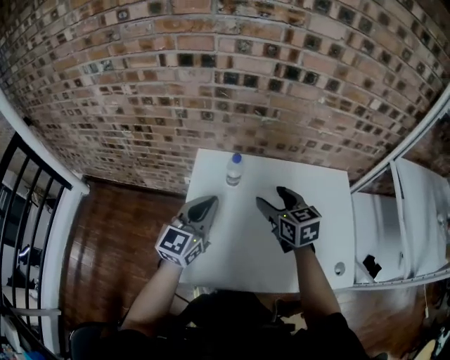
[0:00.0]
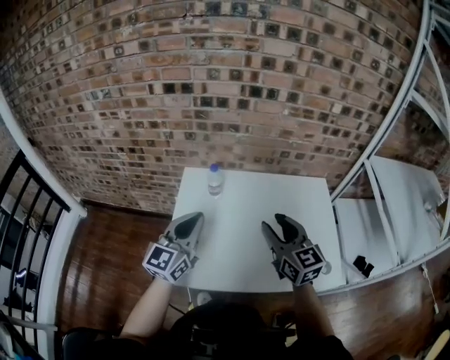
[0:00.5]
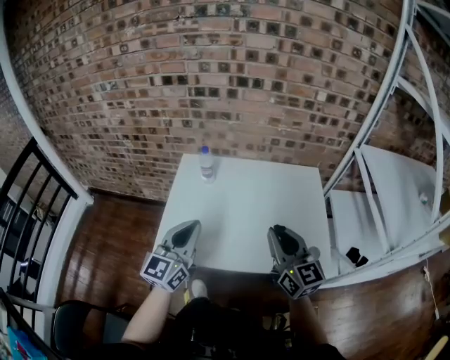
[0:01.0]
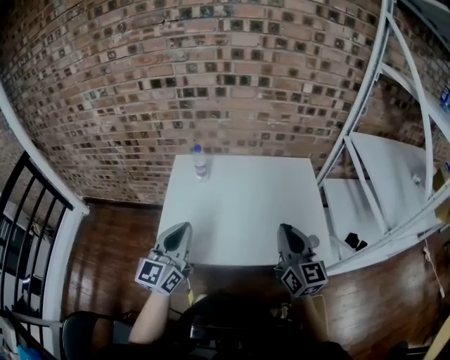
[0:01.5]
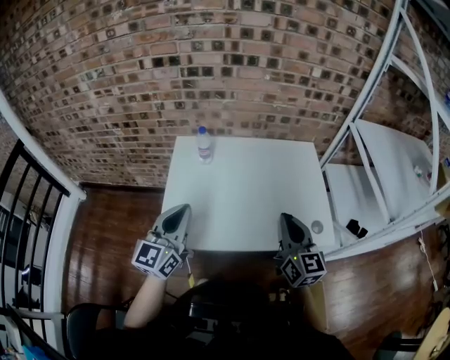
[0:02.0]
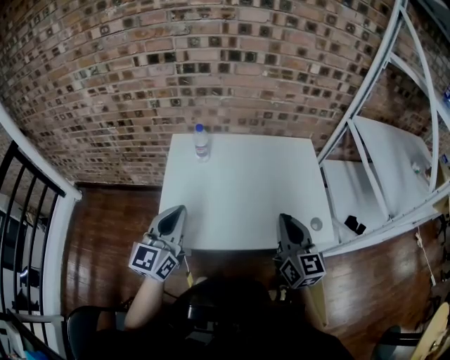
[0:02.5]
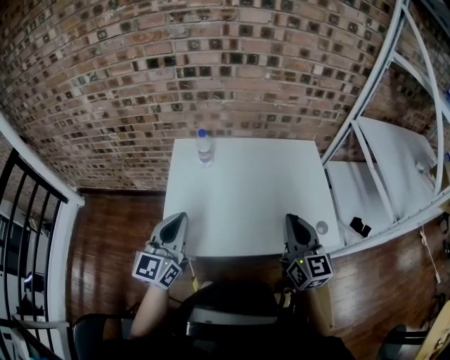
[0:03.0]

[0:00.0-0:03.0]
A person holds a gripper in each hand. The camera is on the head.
0:00.0 to 0:01.5: The left gripper goes about 25 cm backward. The right gripper is displaced backward and to the right by about 35 cm, turns by about 30 degrees, and closes its fingers.
0:01.5 to 0:03.0: The left gripper moves to the left, roughly 5 cm.

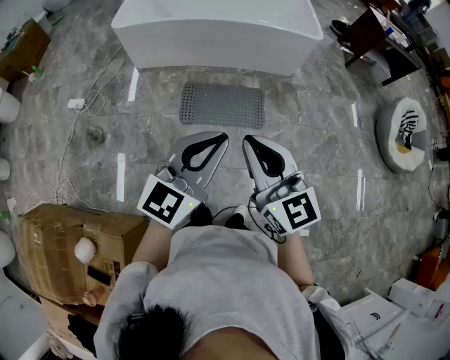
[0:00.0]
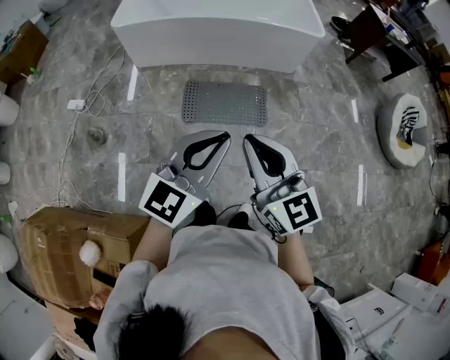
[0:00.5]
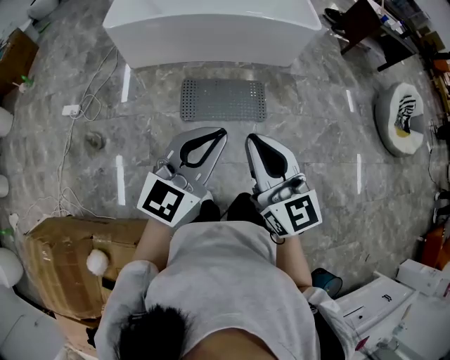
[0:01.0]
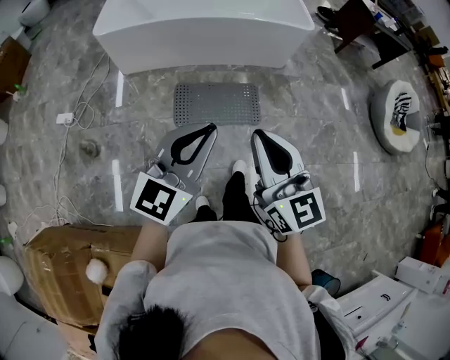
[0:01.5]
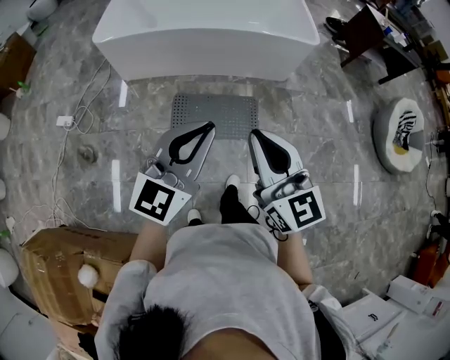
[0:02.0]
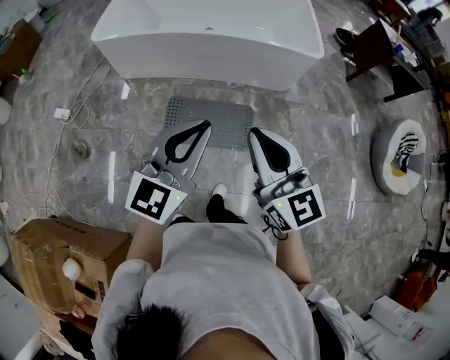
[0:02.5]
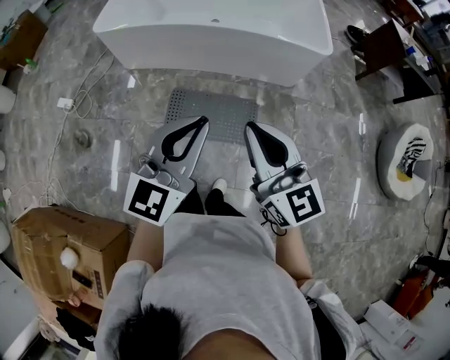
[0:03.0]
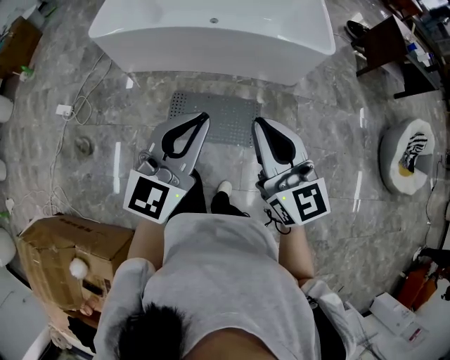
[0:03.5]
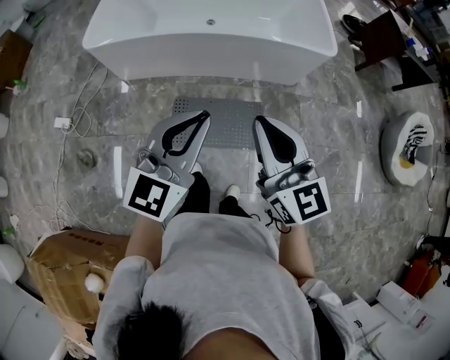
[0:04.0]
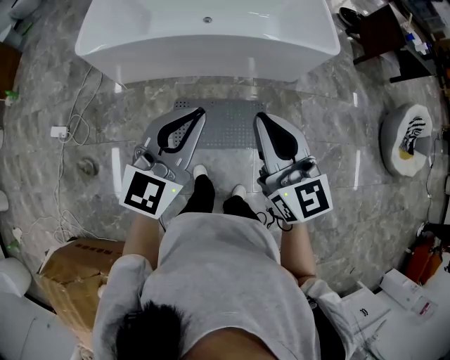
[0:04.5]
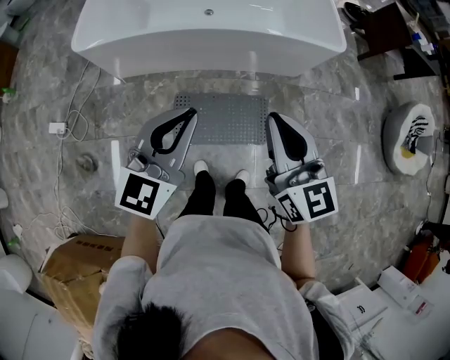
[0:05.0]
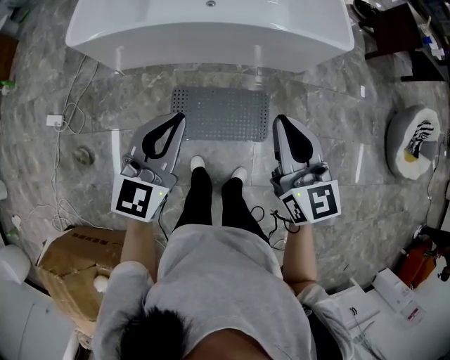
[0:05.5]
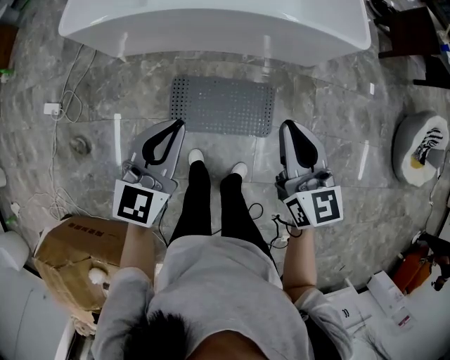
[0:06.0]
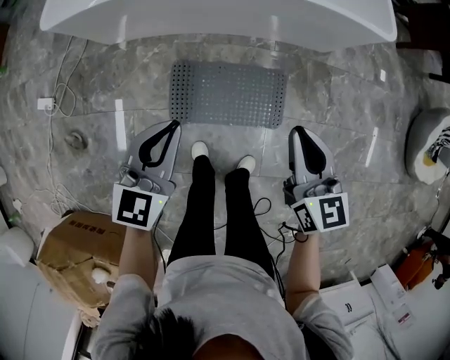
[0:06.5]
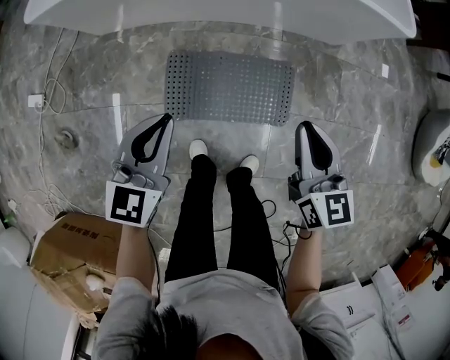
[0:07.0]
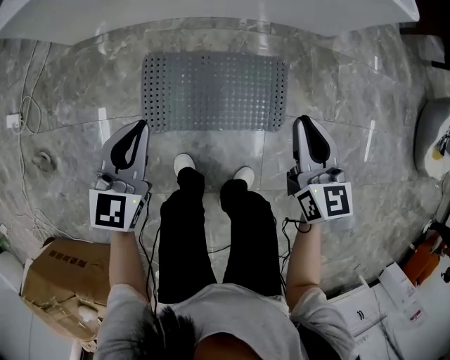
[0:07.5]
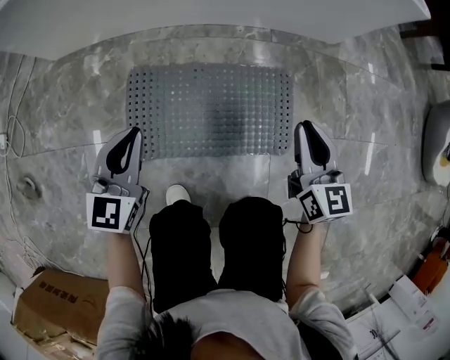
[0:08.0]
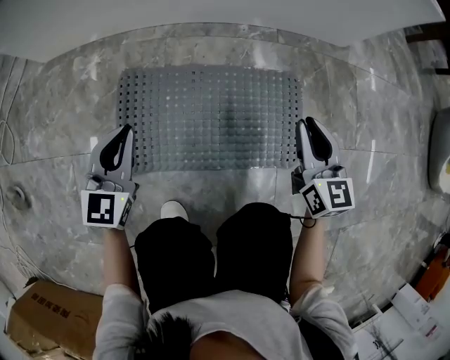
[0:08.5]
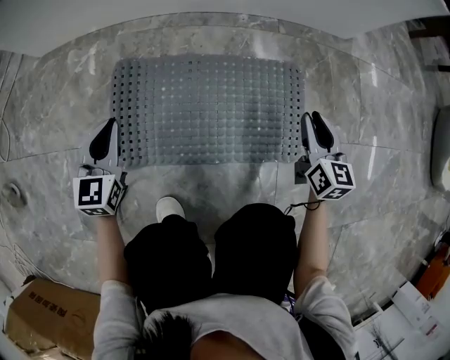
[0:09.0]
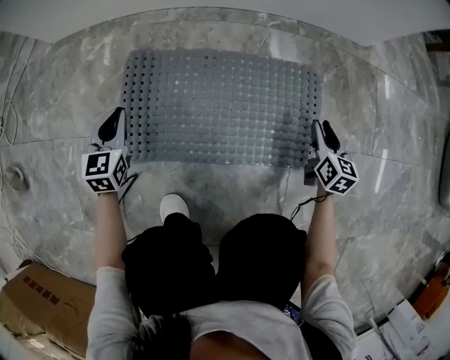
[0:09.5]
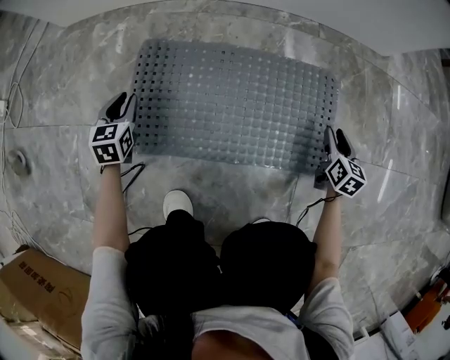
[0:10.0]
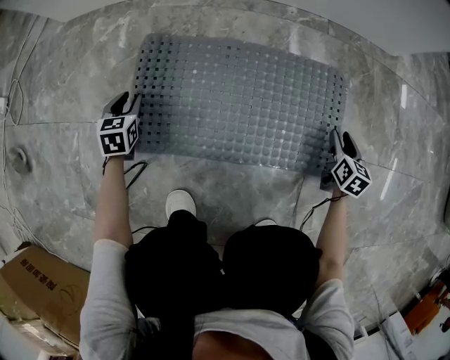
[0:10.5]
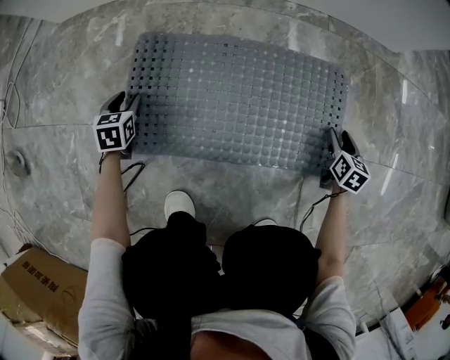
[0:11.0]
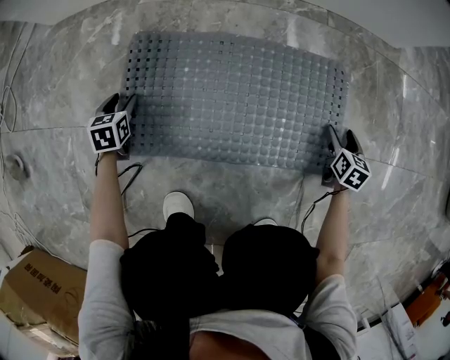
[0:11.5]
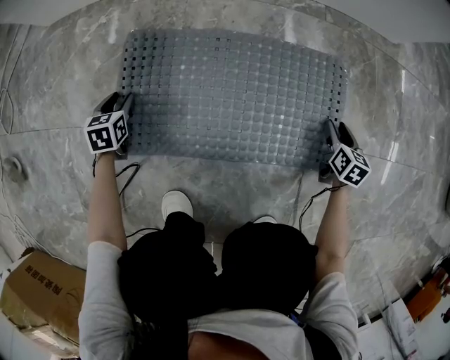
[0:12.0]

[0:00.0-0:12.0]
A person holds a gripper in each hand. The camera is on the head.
0:00.0 to 0:02.0: The two grippers go approximately 15 cm forward.
0:02.0 to 0:04.0: Both grippers travel together forward, approximately 20 cm.
0:04.0 to 0:06.0: The two grippers go some 20 cm downward and forward.
0:06.0 to 0:08.0: Both grippers travel together downward, about 50 cm.
0:08.0 to 0:10.0: The left gripper heads downward and to the left, covering roughly 35 cm, changes its angle by roughly 30 degrees, and opens its fingers. Meanwhile the right gripper shifts approximately 35 cm downward, changes its angle by about 20 degrees, and opens up.
0:10.0 to 0:12.0: The two grippers go about 10 cm downward.

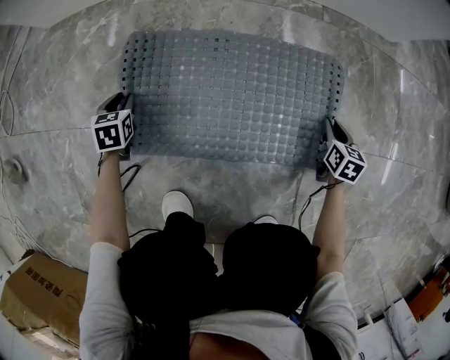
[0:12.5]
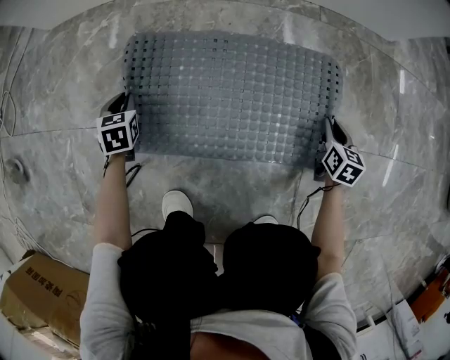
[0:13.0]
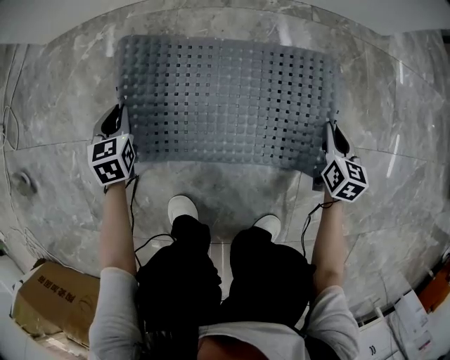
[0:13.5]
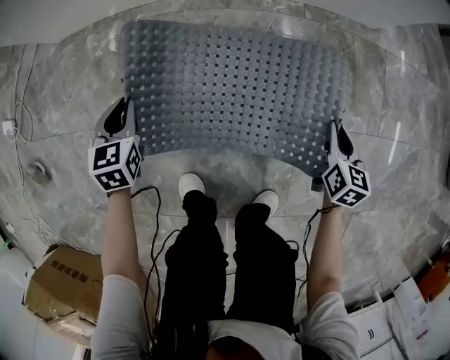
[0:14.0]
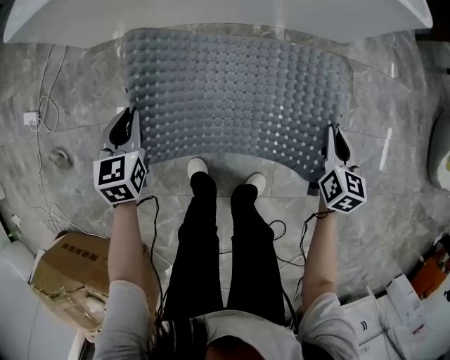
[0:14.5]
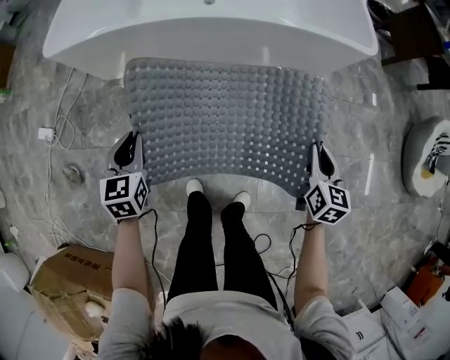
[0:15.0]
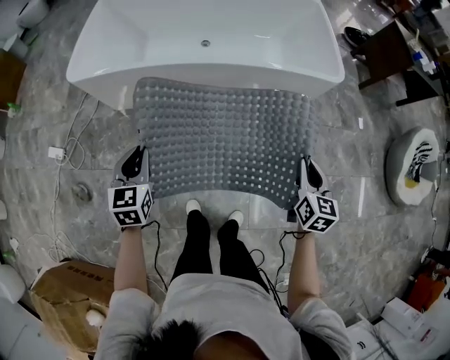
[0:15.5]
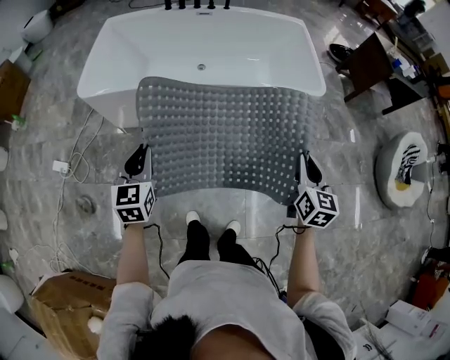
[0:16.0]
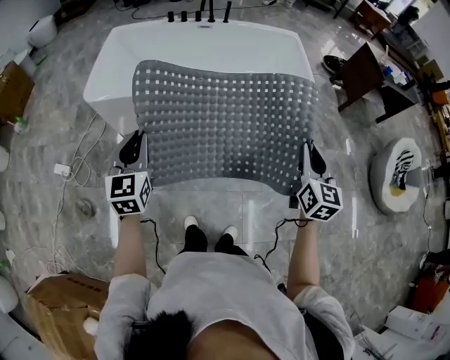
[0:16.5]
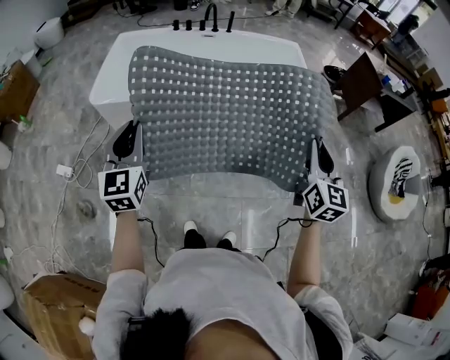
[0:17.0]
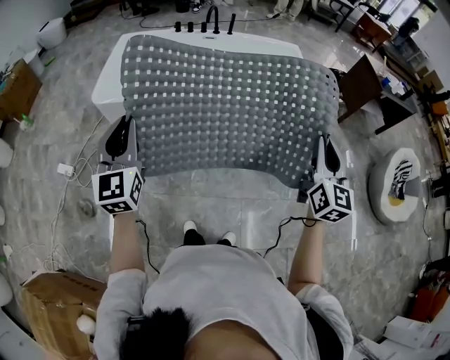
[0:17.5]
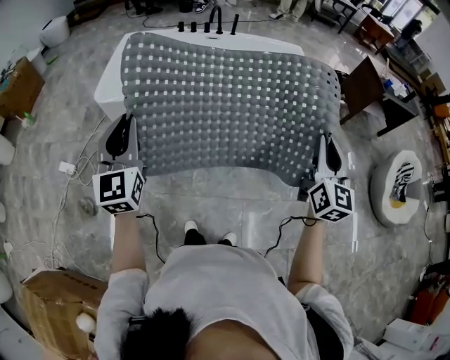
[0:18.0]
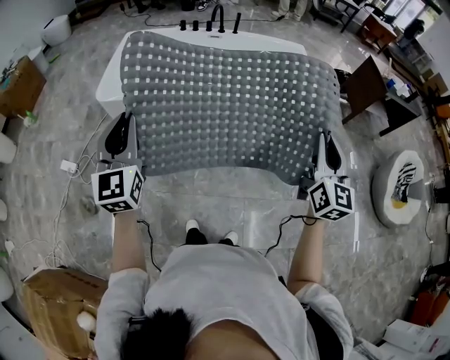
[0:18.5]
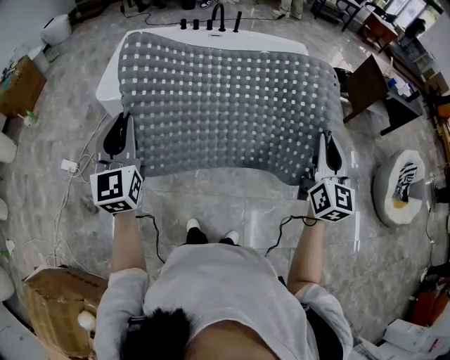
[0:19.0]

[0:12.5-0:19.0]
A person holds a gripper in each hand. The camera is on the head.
0:12.5 to 0:14.5: The grippers both shift upward by some 50 cm.
0:14.5 to 0:17.0: The two grippers go some 60 cm upward. The left gripper tilts its fingers some 40 degrees upward, while the right gripper tips its fingers upward by some 30 degrees.
0:17.0 to 0:19.0: The left gripper changes place by some 5 cm.

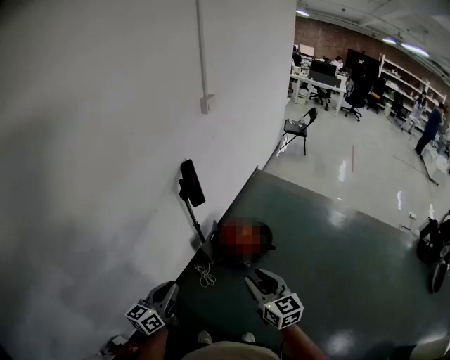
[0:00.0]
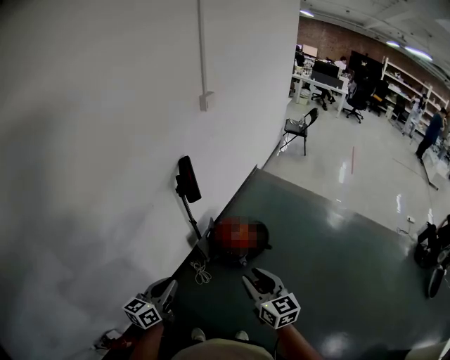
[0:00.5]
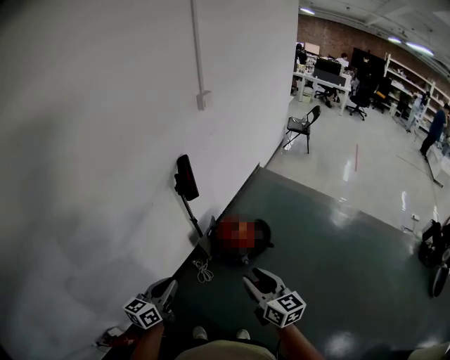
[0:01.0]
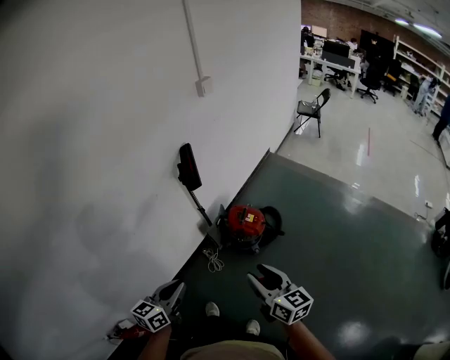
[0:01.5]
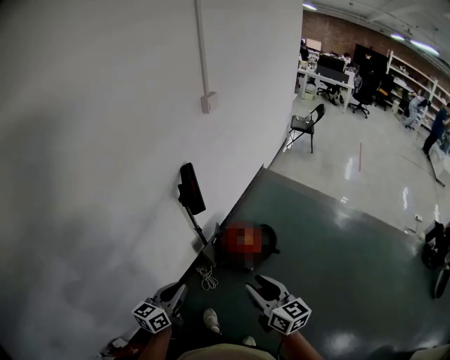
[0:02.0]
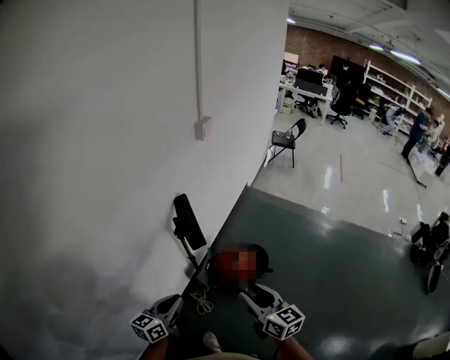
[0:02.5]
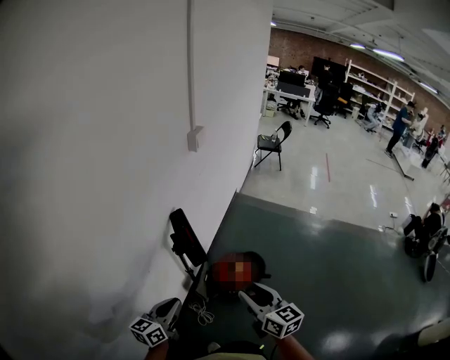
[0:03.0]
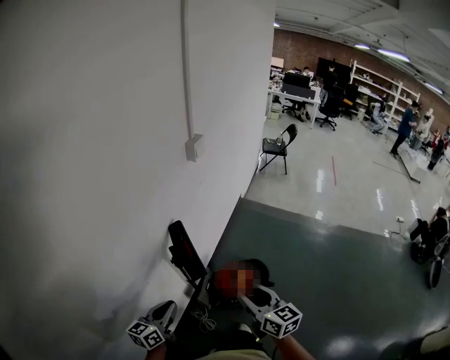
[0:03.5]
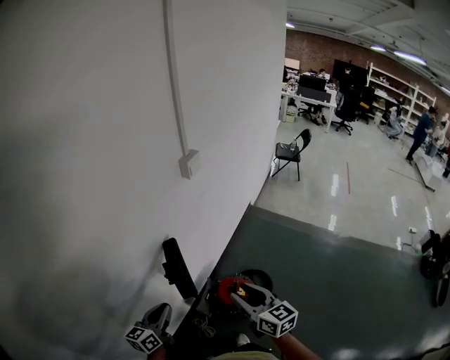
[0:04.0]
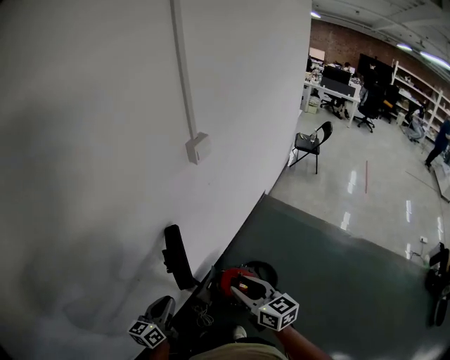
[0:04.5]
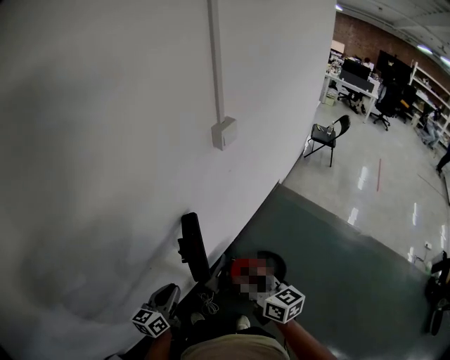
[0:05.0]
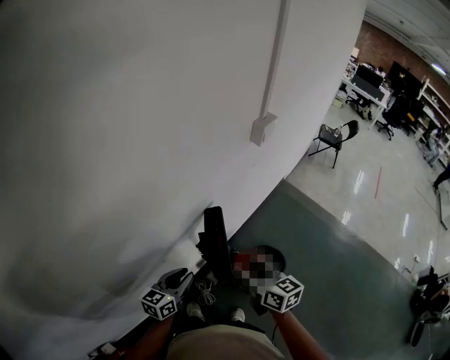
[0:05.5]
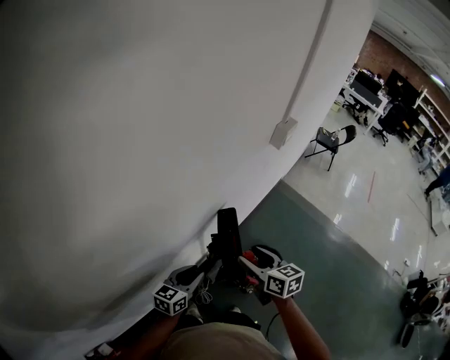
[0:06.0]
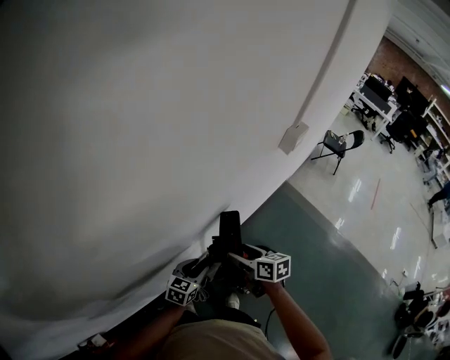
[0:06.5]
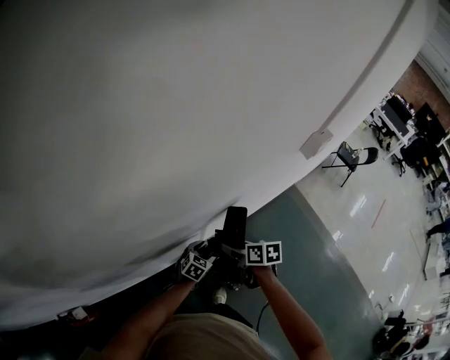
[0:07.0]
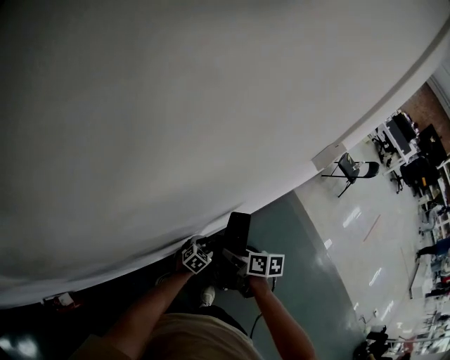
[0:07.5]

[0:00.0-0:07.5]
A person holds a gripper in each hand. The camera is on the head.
0:00.0 to 0:02.0: The left gripper moves forward, approximately 5 cm.
0:02.0 to 0:04.0: Both grippers travel together forward, about 30 cm.
0:04.0 to 0:05.5: The left gripper is displaced downward and forward by roughly 10 cm, while the right gripper is displaced to the left and forward by approximately 15 cm.
0:05.5 to 0:07.5: The right gripper goes about 20 cm downward, forward and to the left, and changes its angle by approximately 40 degrees. The left gripper heads downward and forward, covering approximately 25 cm, changes its angle by roughly 30 degrees, and opens up.
